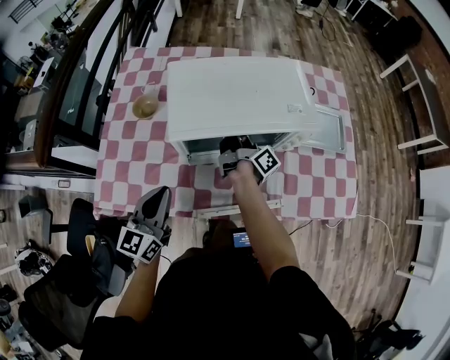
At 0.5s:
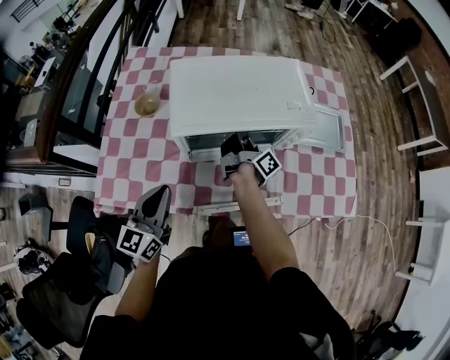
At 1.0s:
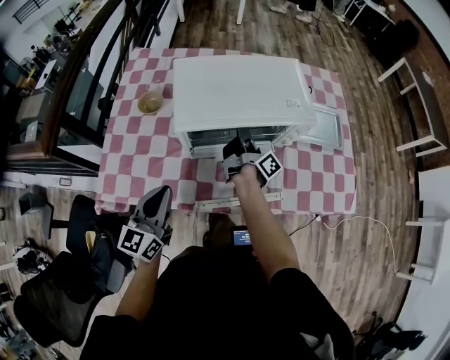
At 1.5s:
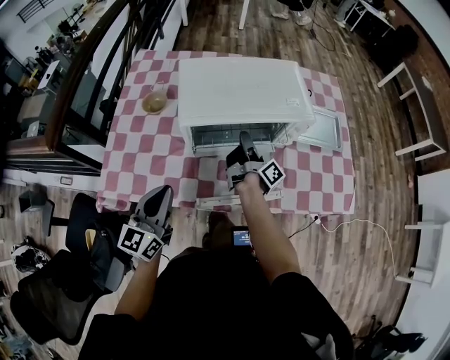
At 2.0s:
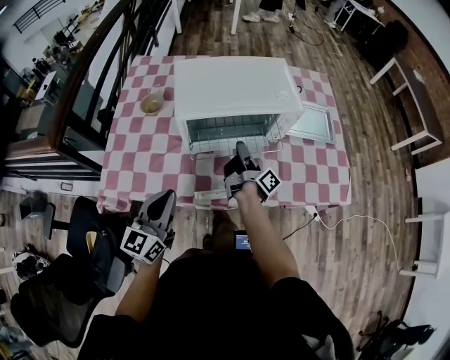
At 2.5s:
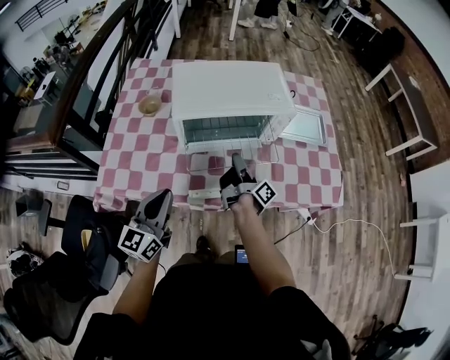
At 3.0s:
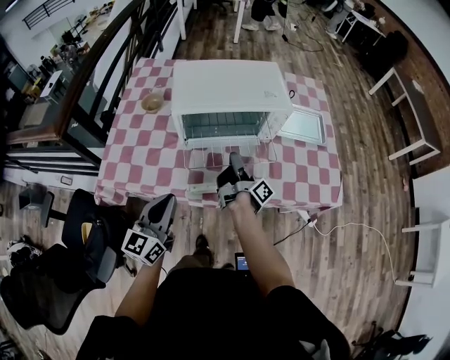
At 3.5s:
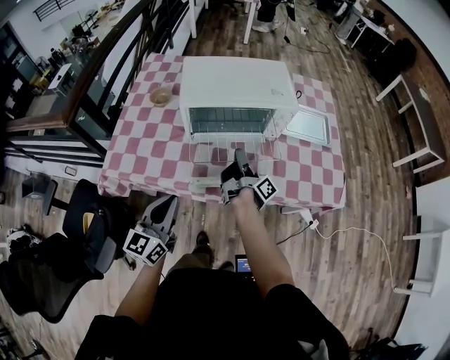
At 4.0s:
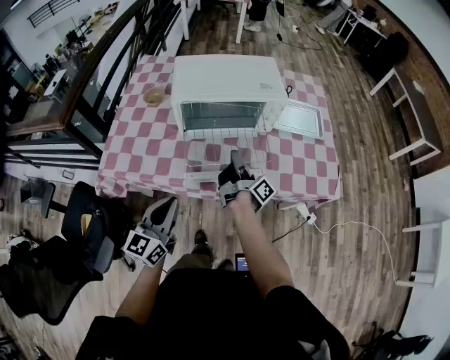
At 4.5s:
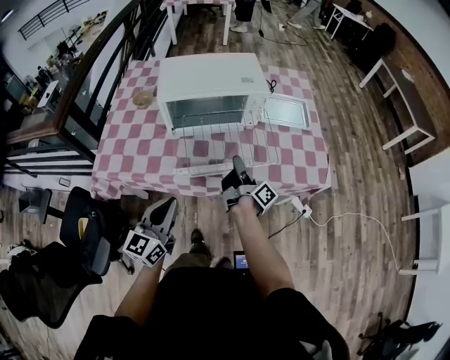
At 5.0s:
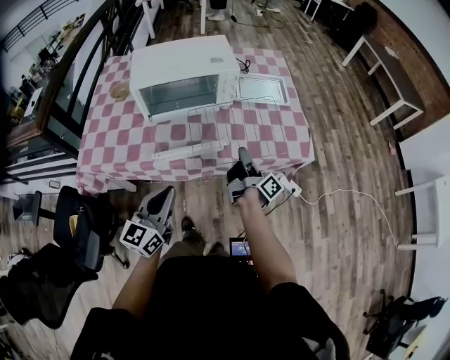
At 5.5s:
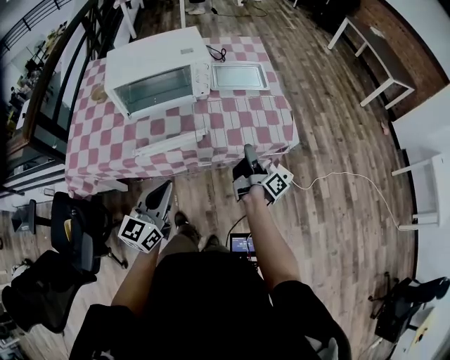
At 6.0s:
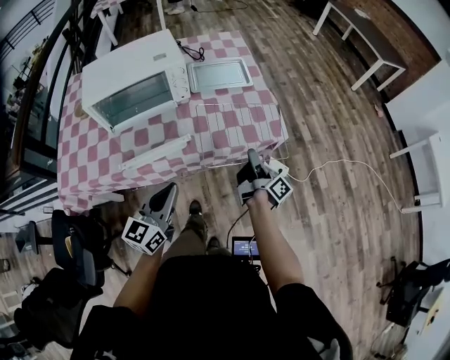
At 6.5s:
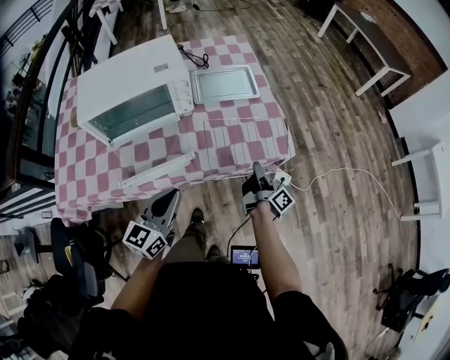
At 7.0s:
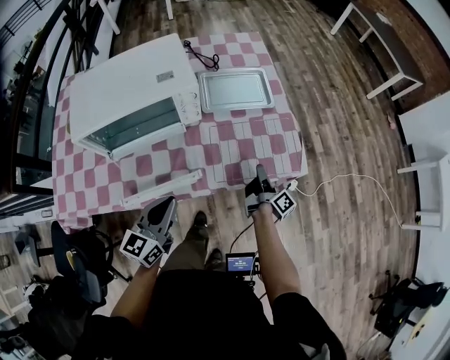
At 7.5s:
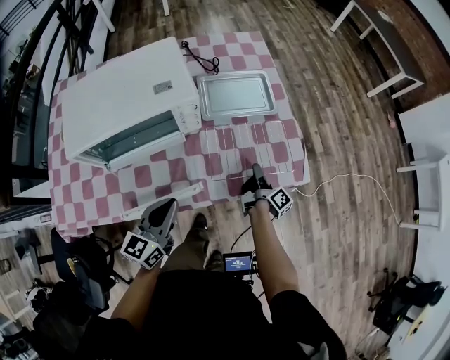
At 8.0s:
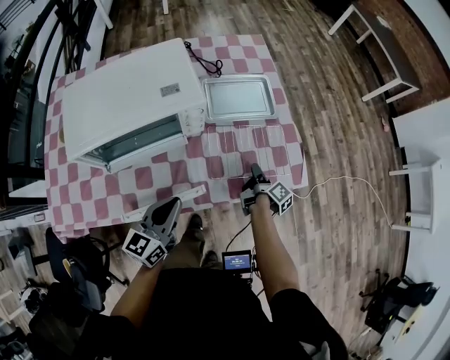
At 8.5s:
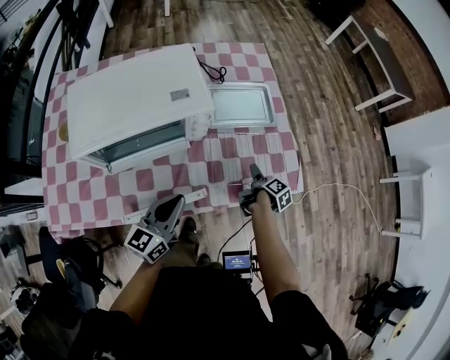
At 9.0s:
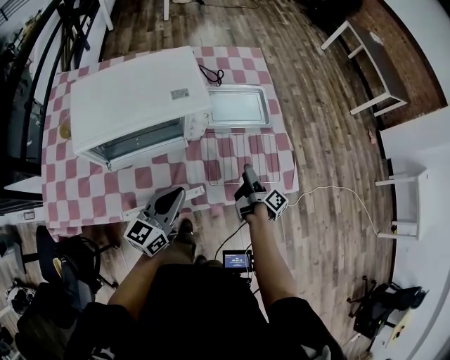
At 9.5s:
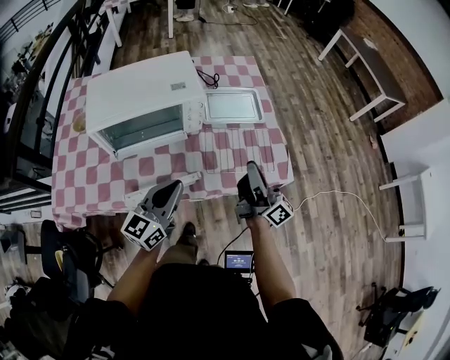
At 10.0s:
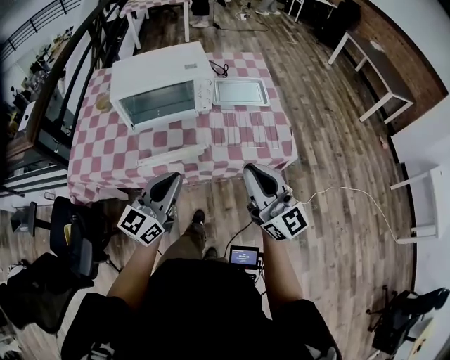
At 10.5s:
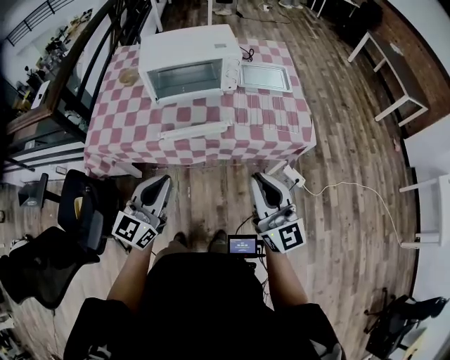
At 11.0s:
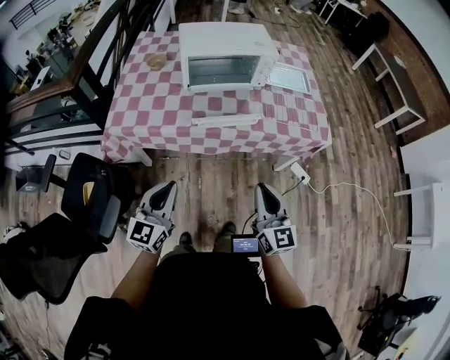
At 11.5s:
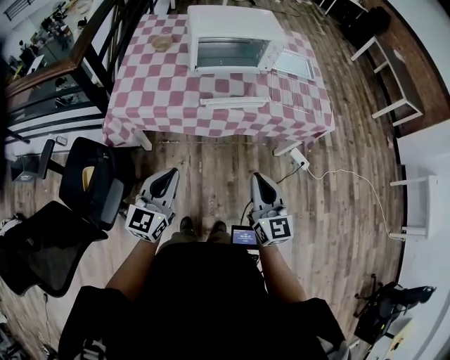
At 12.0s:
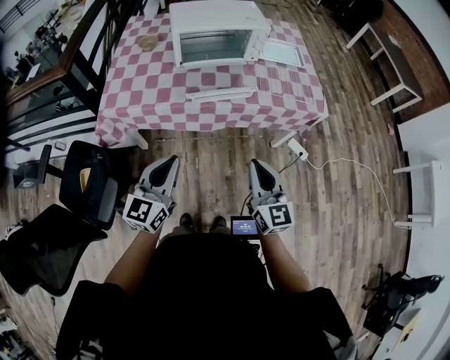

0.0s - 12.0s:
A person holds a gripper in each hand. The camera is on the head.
0.0s - 2.0s: Both grippers travel together backward, approximately 10 cm.
2.0s - 4.0s: The right gripper goes approximately 10 cm backward; the left gripper moves backward and to the right, approximately 10 cm.
4.0s - 6.0s: The grippers both shift to the right by approximately 30 cm. The left gripper swivels approximately 20 degrees. The right gripper swivels approximately 20 degrees.
6.0s - 8.0s: The left gripper moves forward and to the left, some 20 cm. The right gripper goes some 20 cm forward and downward, and swivels some 30 degrees.
8.0s - 10.0s: The left gripper is displaced backward and upward by approximately 25 cm, and changes its angle by some 20 degrees. The right gripper travels upward and backward by about 50 cm, rotates around the line of its fingers by about 80 degrees, counterclockwise from behind, and opens and closes again.
10.0s - 12.0s: The left gripper is displaced to the left and backward by roughly 30 cm. Meanwhile the right gripper travels backward, to the left and downward by approximately 25 cm, and turns by approximately 20 degrees.

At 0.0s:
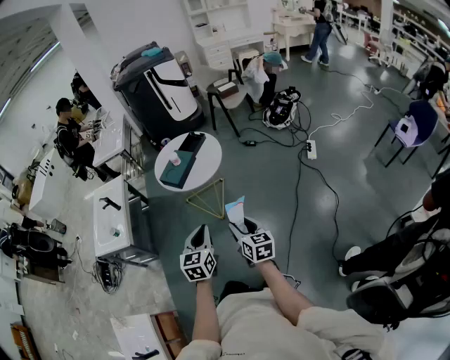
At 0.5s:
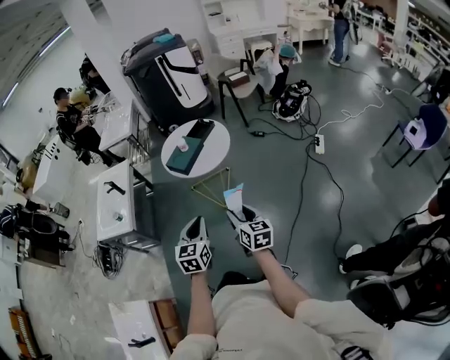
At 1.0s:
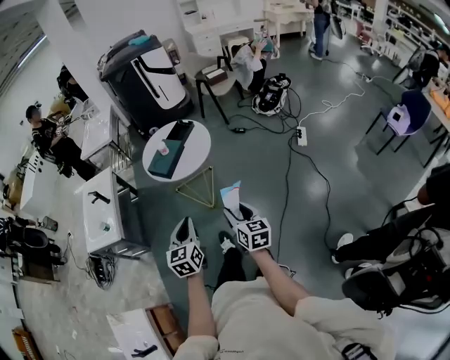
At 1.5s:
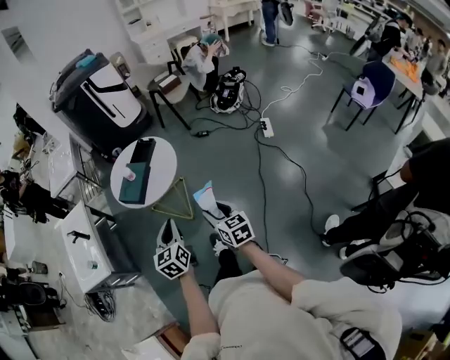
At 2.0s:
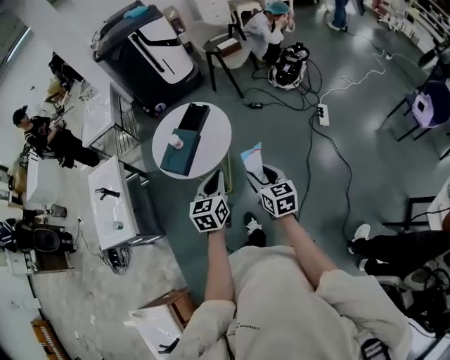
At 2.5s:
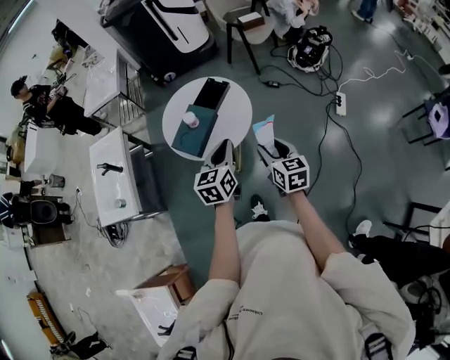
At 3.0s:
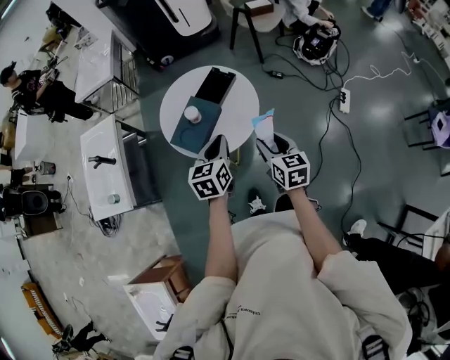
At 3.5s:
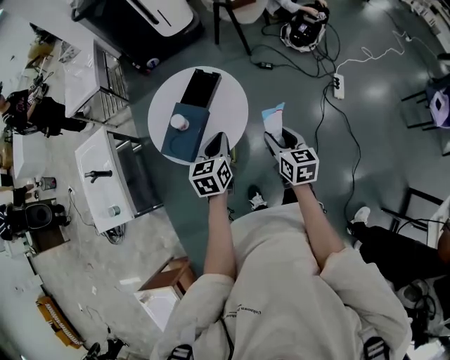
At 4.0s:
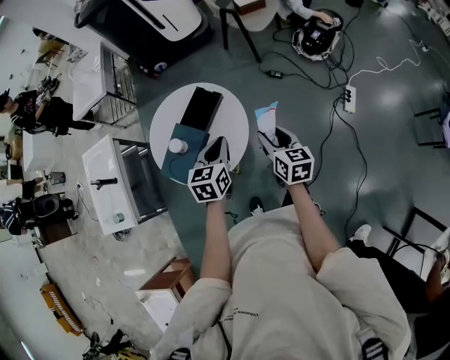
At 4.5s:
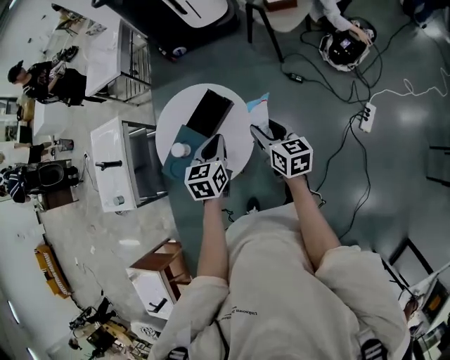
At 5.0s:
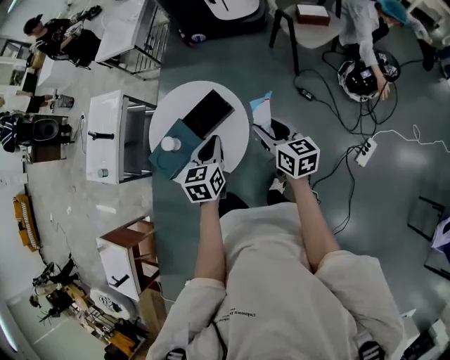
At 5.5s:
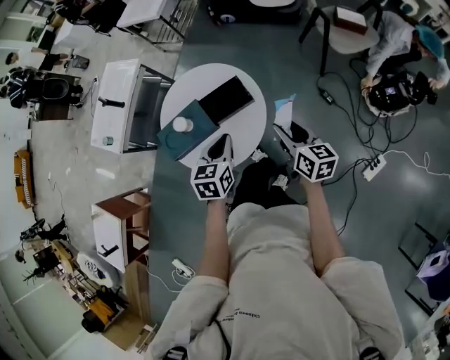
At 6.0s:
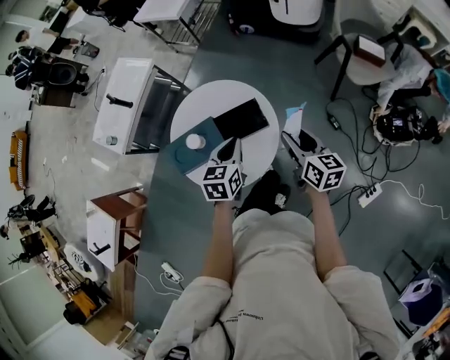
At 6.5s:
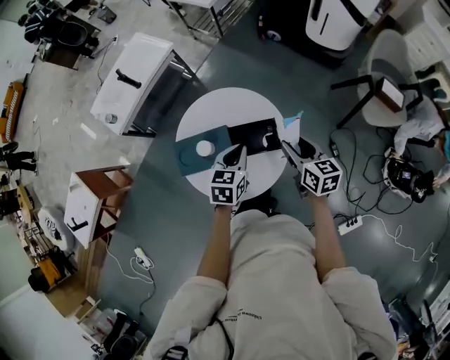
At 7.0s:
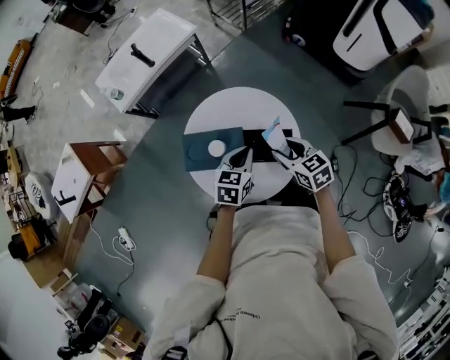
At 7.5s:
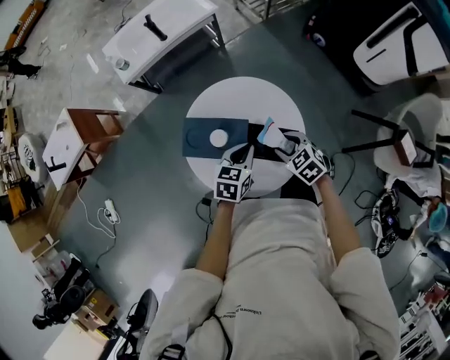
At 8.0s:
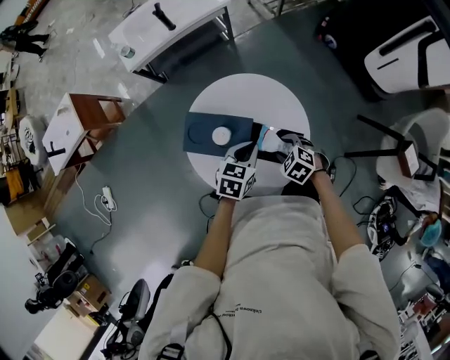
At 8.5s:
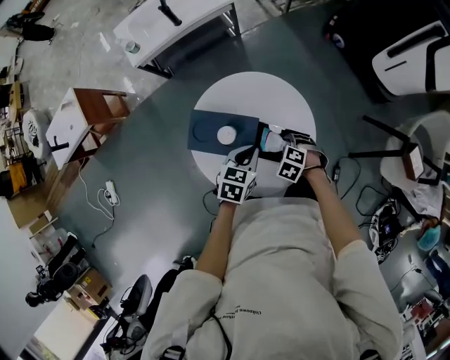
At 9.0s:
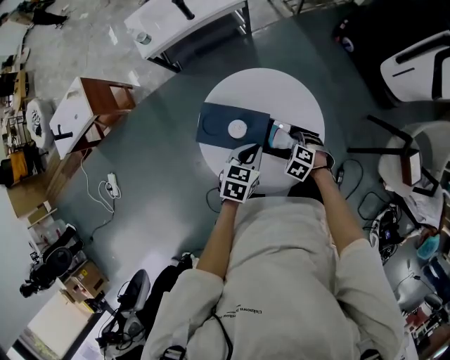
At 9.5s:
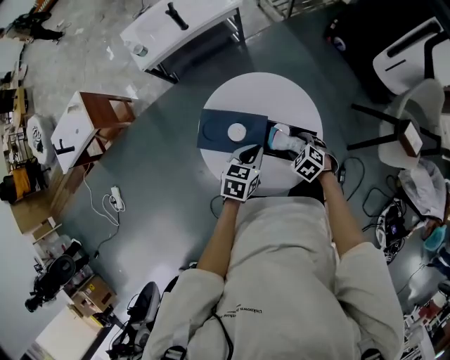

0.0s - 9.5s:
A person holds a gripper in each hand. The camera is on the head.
0.0s - 2.0s: Both grippers move forward, approximately 30 cm.
2.0s - 4.0s: The grippers both shift forward by about 35 cm.
4.0s - 5.5s: The right gripper ends up approximately 25 cm from where it was, and swivels some 40 degrees, while the left gripper shifts by about 15 cm, and swivels some 30 degrees.
5.5s - 7.5s: The left gripper changes place by approximately 25 cm, and rotates some 30 degrees. Meanwhile the right gripper ends up about 35 cm from where it was, and angles its fingers downward, by approximately 40 degrees.
7.5s - 9.5s: The right gripper shifts roughly 10 cm downward.

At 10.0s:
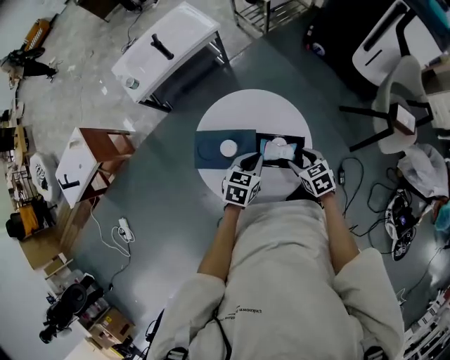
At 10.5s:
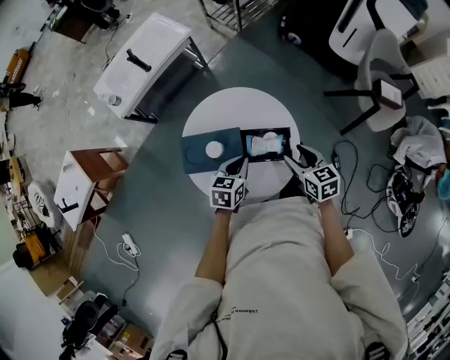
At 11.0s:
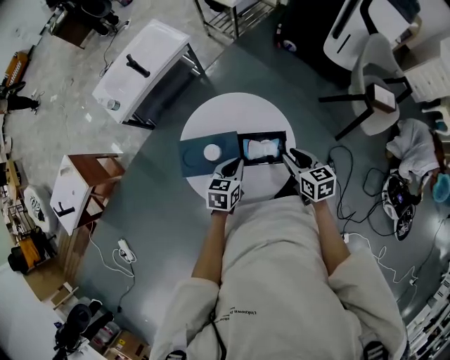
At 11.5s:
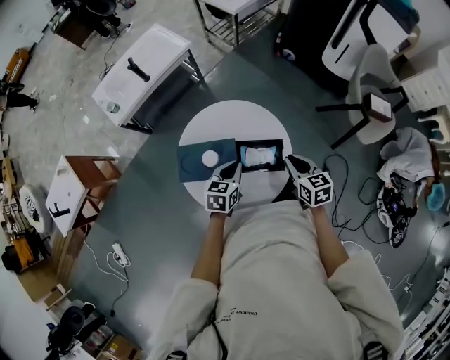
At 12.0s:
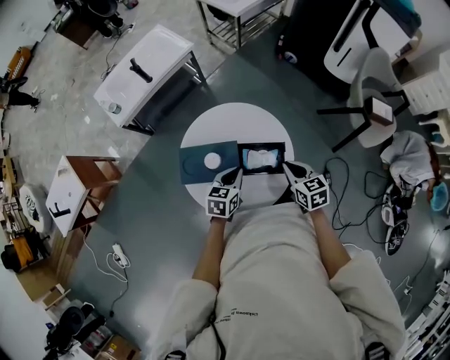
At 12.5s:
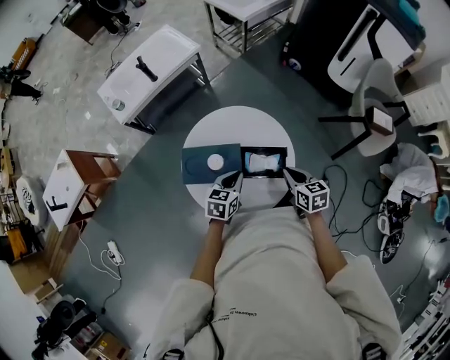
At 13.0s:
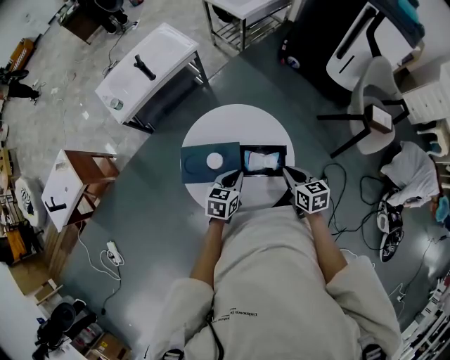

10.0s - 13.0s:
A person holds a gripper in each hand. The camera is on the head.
10.0s - 11.5s: The right gripper travels upward by some 5 cm, rotates roughly 30 degrees, and closes.
11.5s - 13.0s: The grippers stay close to where they were, moving slightly.

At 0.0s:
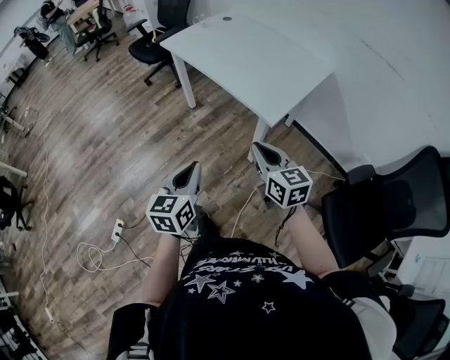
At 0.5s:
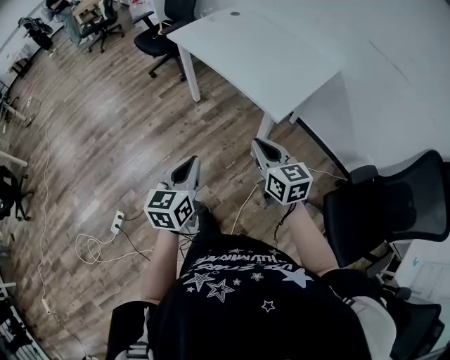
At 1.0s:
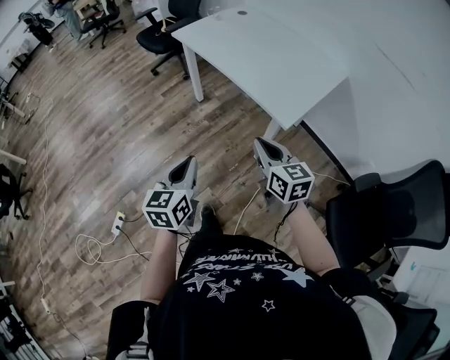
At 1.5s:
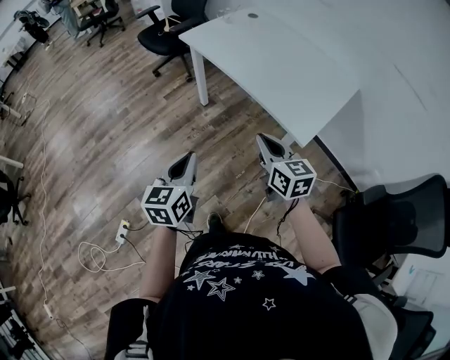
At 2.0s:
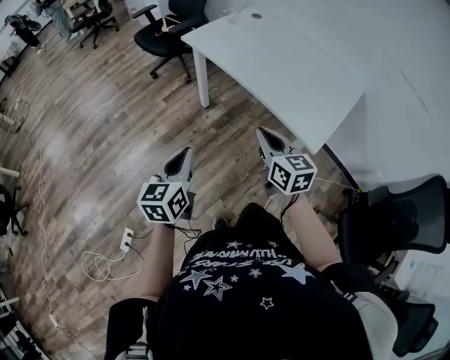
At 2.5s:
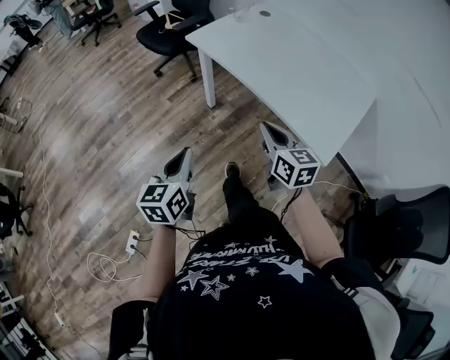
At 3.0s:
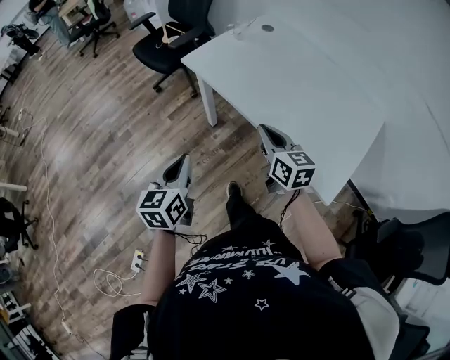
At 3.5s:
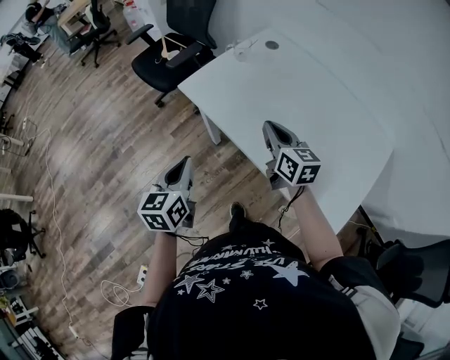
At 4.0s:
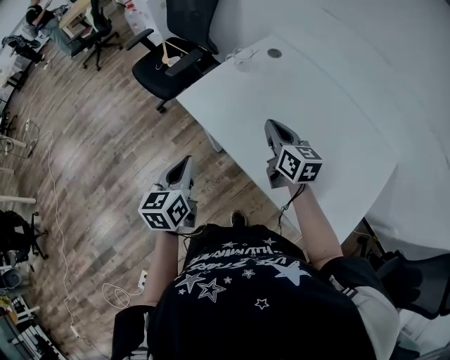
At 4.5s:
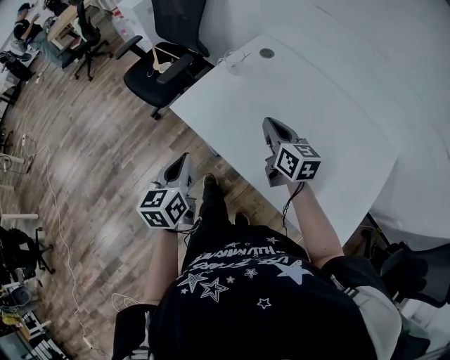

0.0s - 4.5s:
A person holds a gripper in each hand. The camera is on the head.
0.0s - 2.0s: The two grippers go approximately 30 cm forward and to the left.
2.0s - 4.5s: The pair of grippers is taken forward, some 50 cm.
